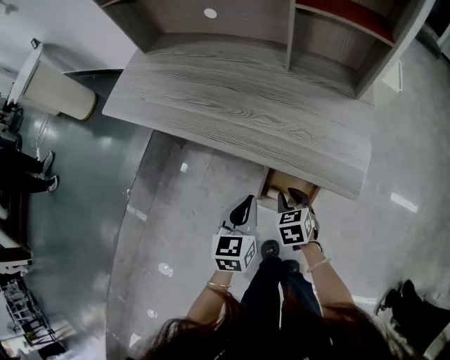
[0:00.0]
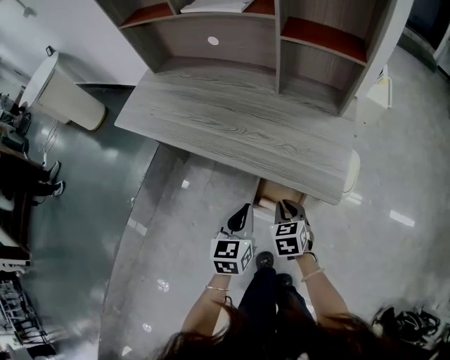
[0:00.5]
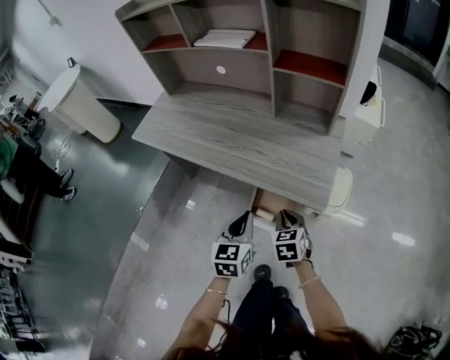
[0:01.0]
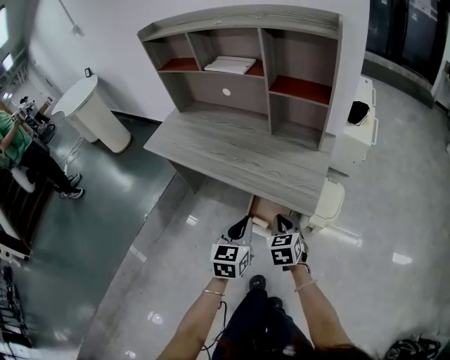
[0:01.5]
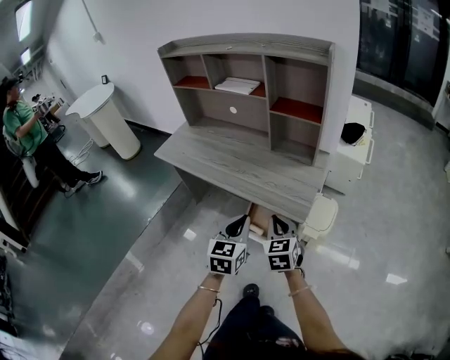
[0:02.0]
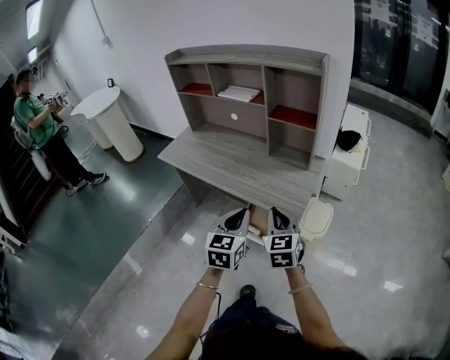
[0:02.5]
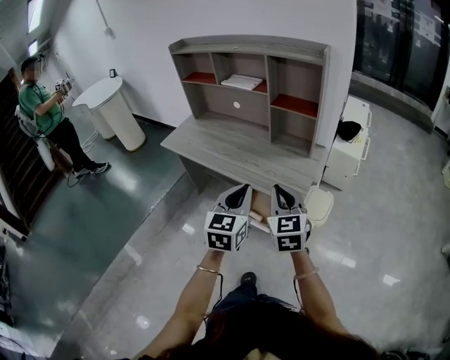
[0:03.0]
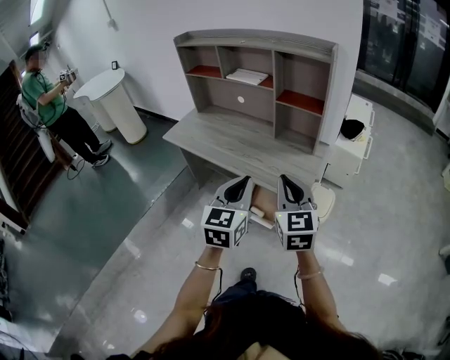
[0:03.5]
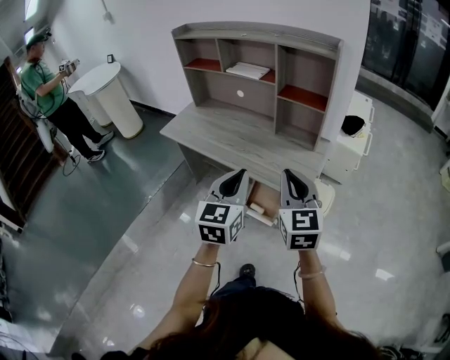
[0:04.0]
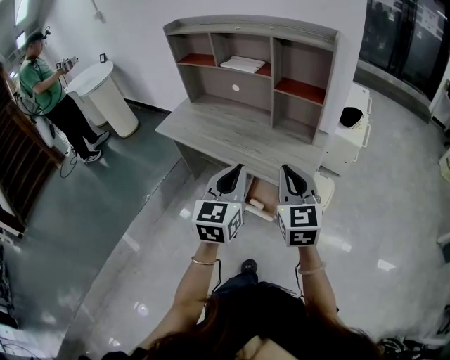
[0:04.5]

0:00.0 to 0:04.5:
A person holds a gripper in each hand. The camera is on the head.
0:00.0 to 0:02.0: The grippers both shift upward and backward by approximately 30 cm. The right gripper turns by about 30 degrees.
0:02.0 to 0:04.5: Both grippers travel together upward, approximately 15 cm.

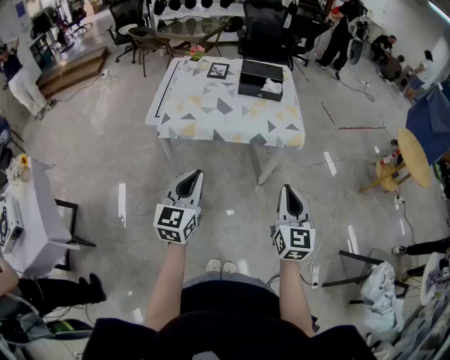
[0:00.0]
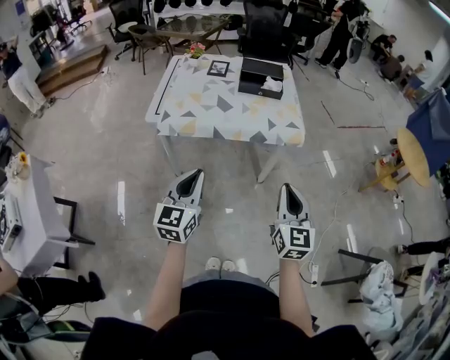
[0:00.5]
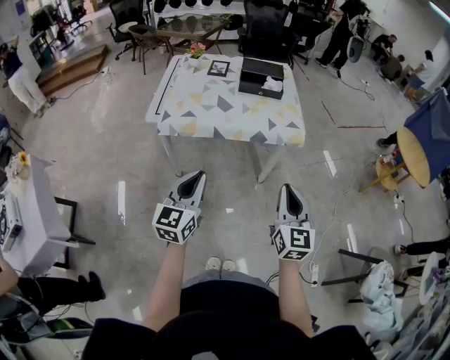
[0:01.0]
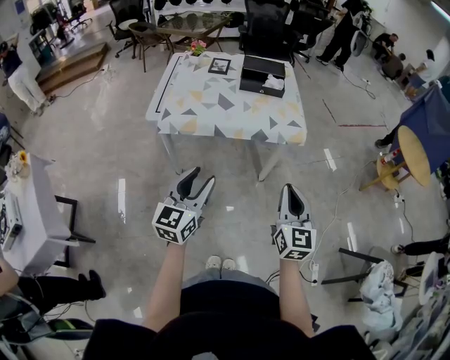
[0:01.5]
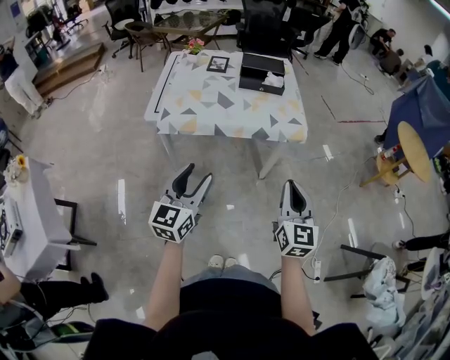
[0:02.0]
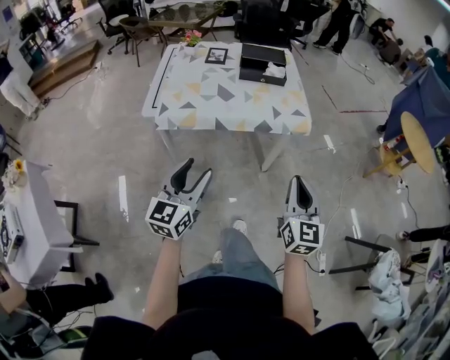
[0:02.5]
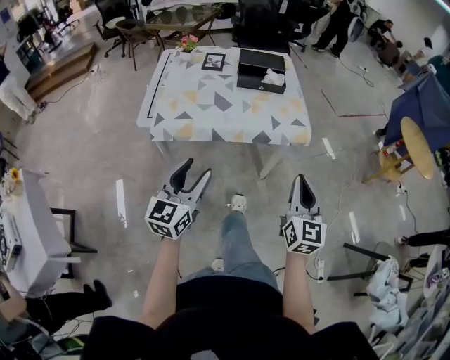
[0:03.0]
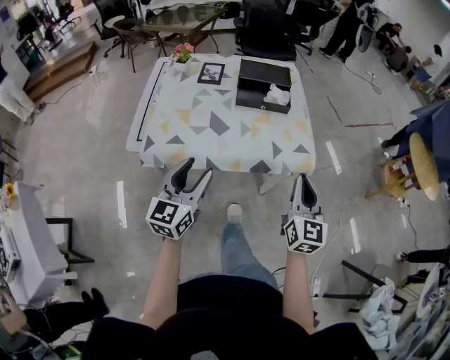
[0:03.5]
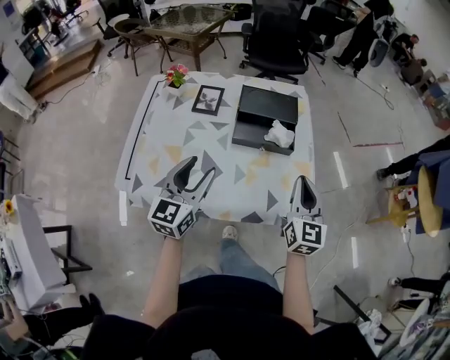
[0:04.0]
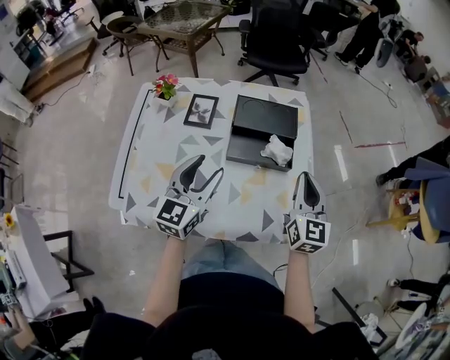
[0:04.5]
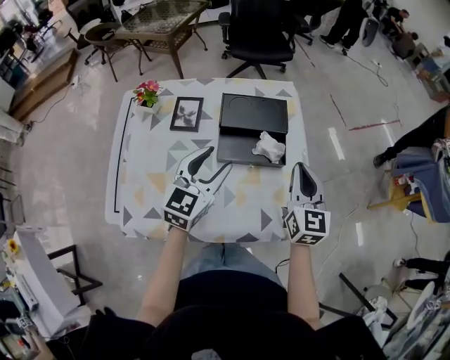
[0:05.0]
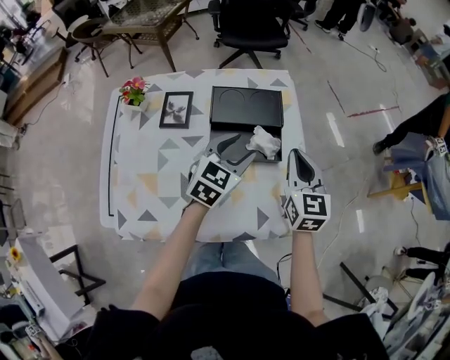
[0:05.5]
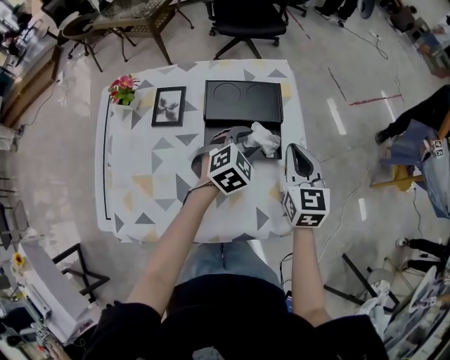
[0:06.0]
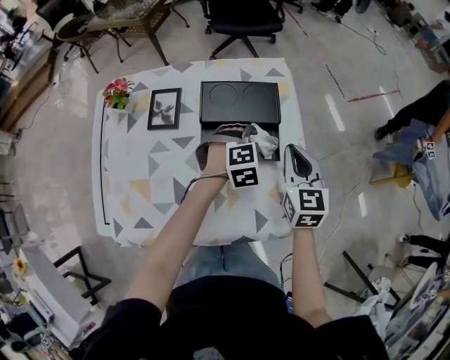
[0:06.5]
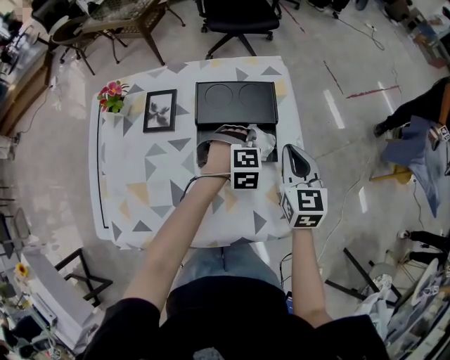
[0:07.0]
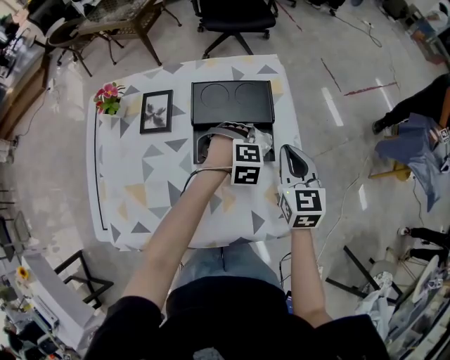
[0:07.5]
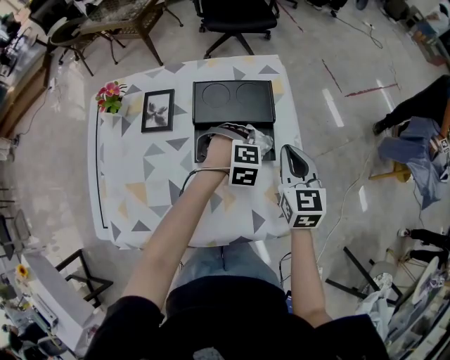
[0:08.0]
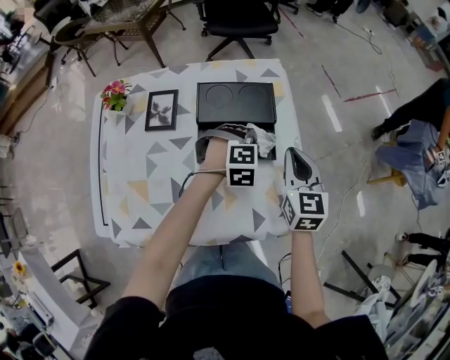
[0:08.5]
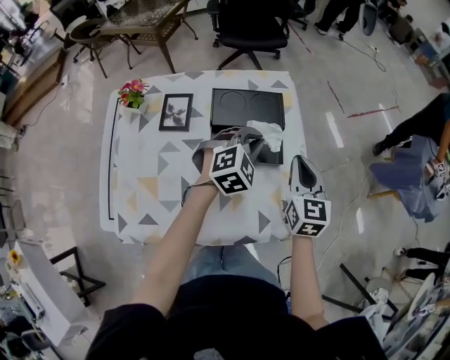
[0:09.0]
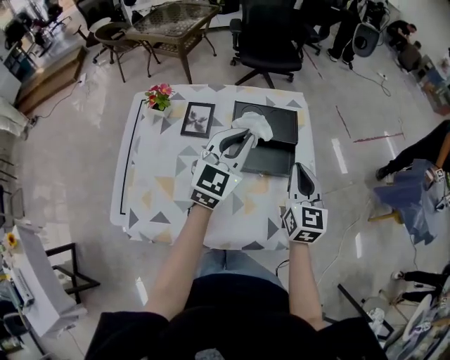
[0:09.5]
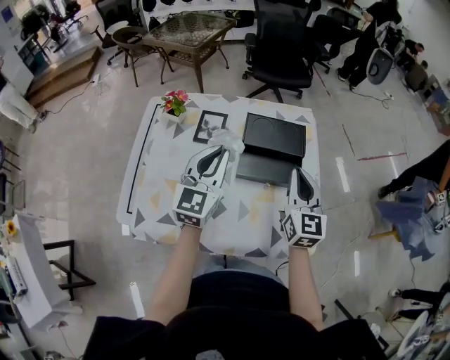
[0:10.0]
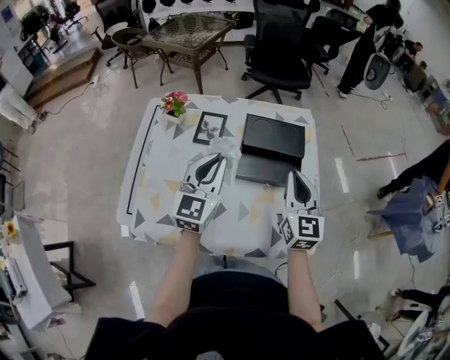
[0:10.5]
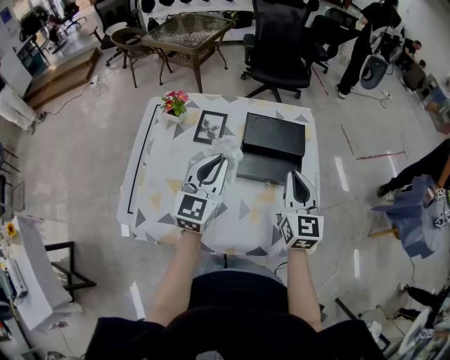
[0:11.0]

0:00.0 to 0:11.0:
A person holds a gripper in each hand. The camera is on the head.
0:00.0 to 0:02.0: The left gripper opens.
0:02.0 to 0:03.5: The grippers both shift forward by approximately 20 cm.
0:03.5 to 0:05.5: Both grippers move forward, about 40 cm. The left gripper rotates roughly 30 degrees.
0:05.5 to 0:07.5: The right gripper ends up about 5 cm from where it was, while the left gripper moves downward and to the right, approximately 15 cm, points its fingers roughly 40 degrees further downward, and closes its fingers.
0:07.5 to 0:09.0: The left gripper shifts roughly 15 cm upward, and rotates about 40 degrees.
0:09.0 to 0:11.0: The right gripper heads to the left and upward, covering approximately 10 cm. Meanwhile the left gripper heads to the left, backward and upward, covering some 25 cm, and tips its fingers upward by approximately 30 degrees.

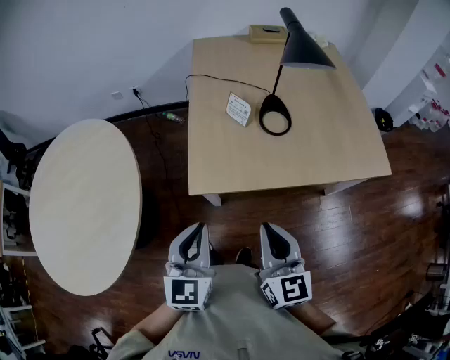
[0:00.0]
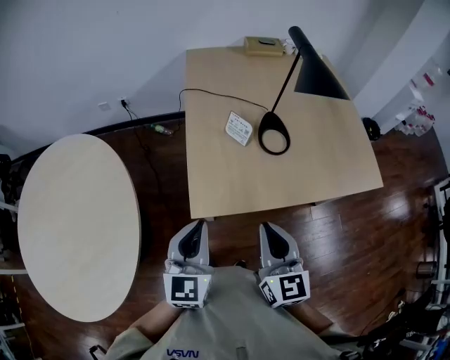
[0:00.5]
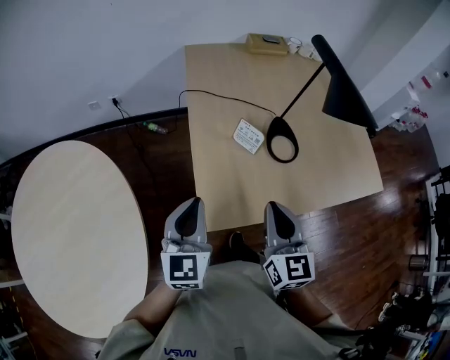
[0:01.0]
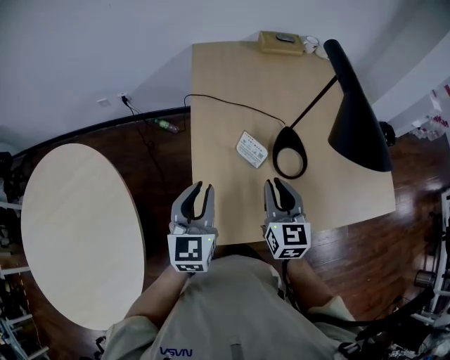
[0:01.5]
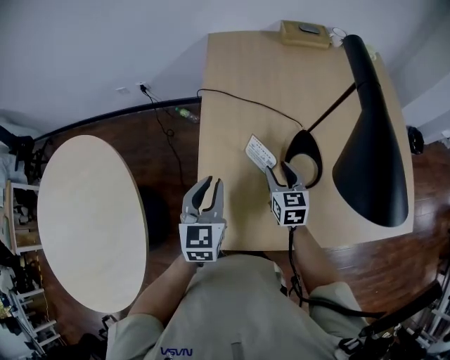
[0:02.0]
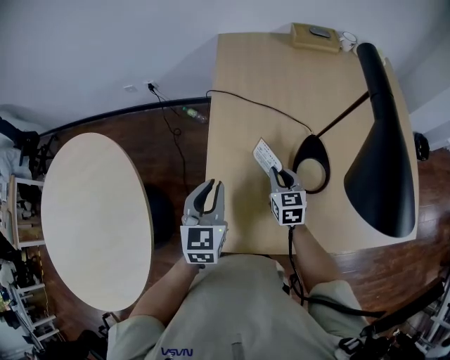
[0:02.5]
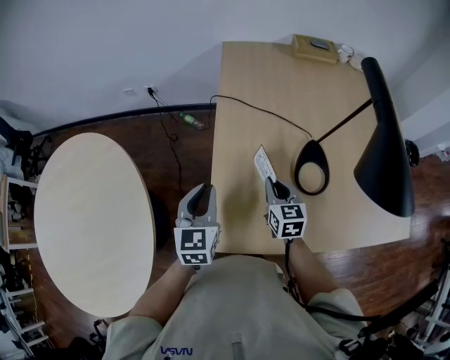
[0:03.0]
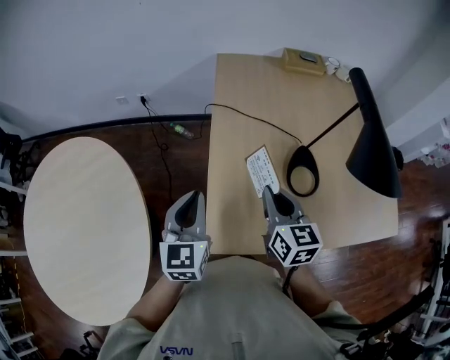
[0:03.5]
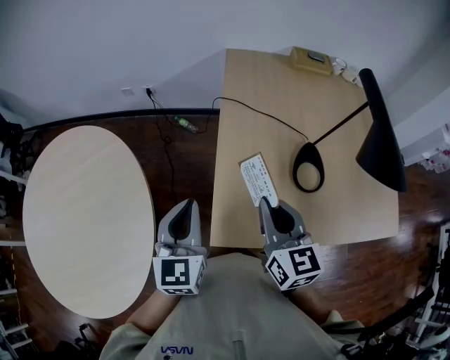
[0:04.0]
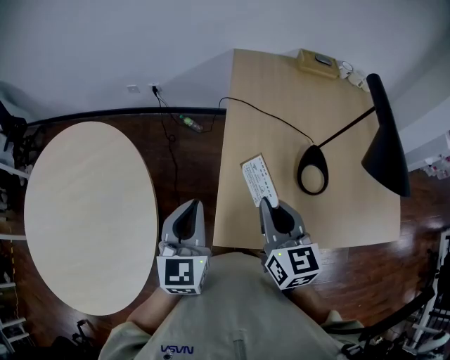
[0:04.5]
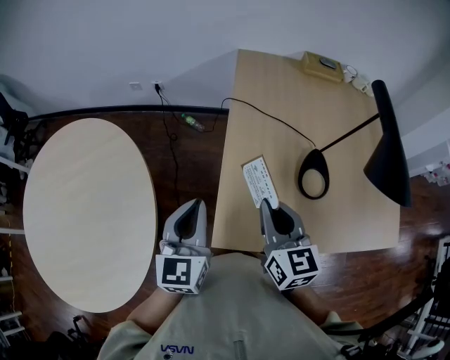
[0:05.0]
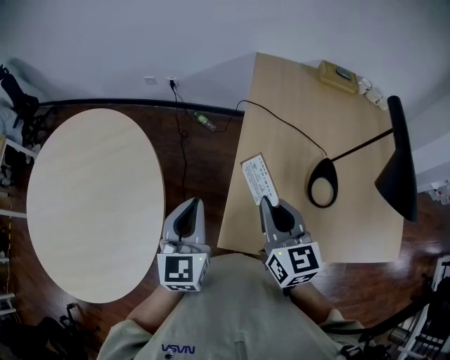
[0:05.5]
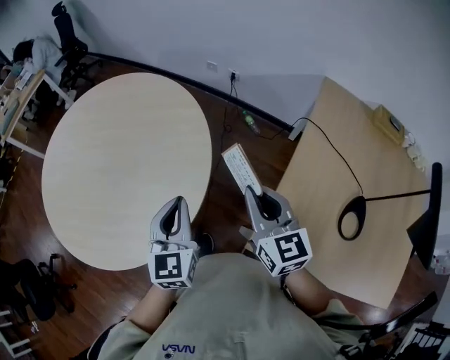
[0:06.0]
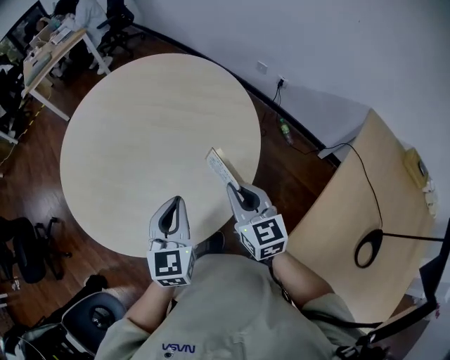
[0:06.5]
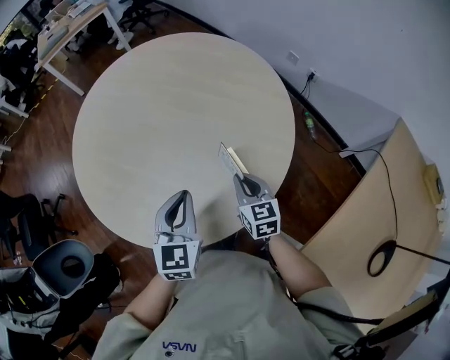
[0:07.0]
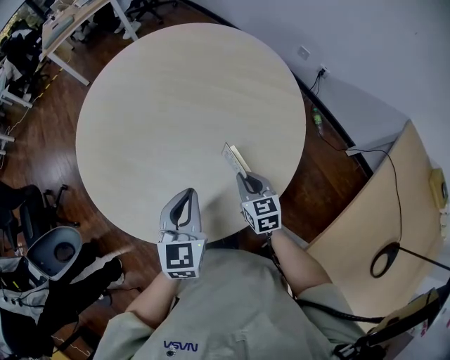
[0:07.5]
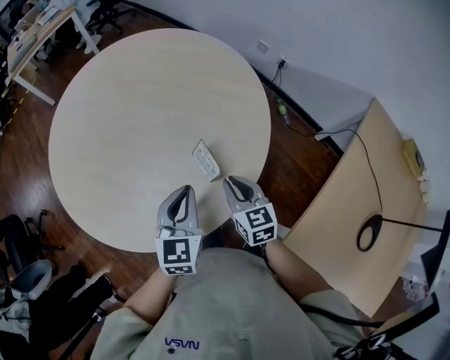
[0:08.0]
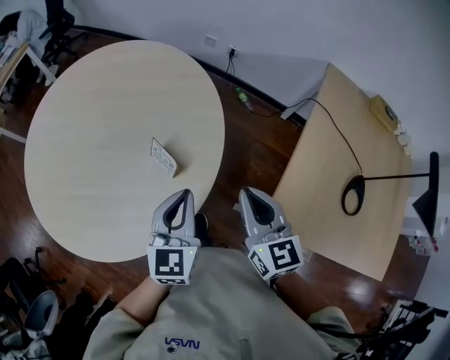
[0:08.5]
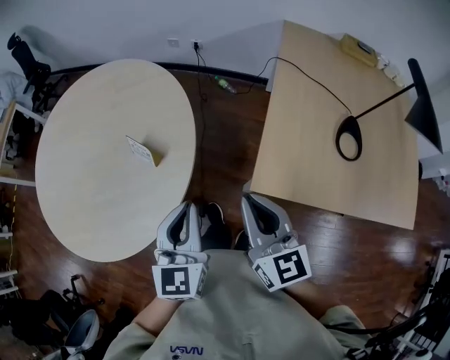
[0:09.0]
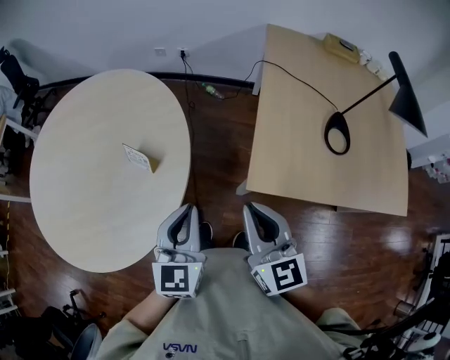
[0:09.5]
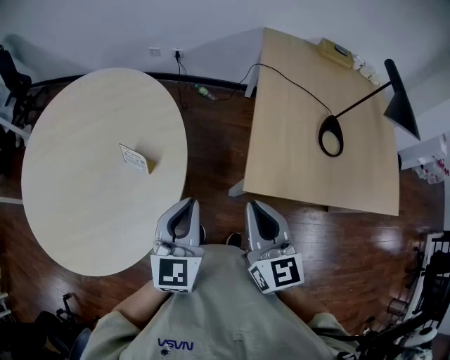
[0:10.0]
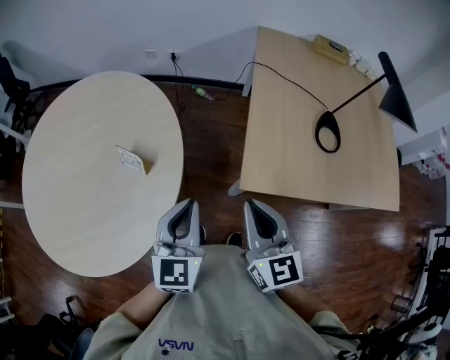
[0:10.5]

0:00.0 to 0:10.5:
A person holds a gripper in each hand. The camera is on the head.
0:00.0 to 0:02.0: The right gripper is displaced forward and downward by about 50 cm, and opens its fingers, while the left gripper travels forward by approximately 35 cm.
0:02.0 to 0:04.0: The right gripper travels upward, to the left and backward by approximately 30 cm, and closes its fingers. The left gripper travels to the left, upward and backward by about 20 cm.
0:04.0 to 0:06.5: The right gripper changes place by about 40 cm, and turns by approximately 50 degrees. Meanwhile the left gripper shifts by about 40 cm, and swivels some 40 degrees.
0:06.5 to 0:08.5: The left gripper changes place by approximately 5 cm, and swivels roughly 20 degrees, while the right gripper reaches about 15 cm downward, then returns, and changes its angle by approximately 20 degrees.
0:08.5 to 0:10.5: The right gripper is displaced backward and to the right by roughly 20 cm, and swivels about 20 degrees. Meanwhile the left gripper moves to the right and backward, some 15 cm, and swivels approximately 20 degrees.
